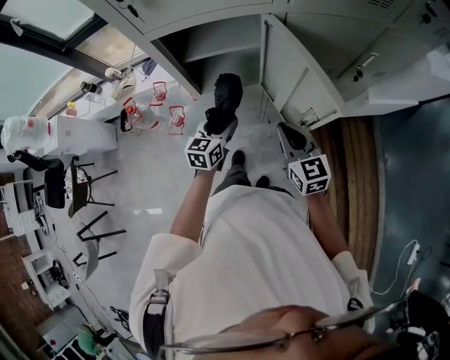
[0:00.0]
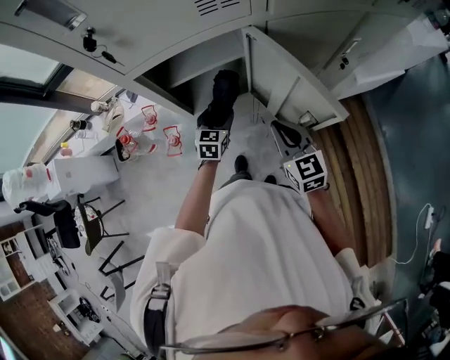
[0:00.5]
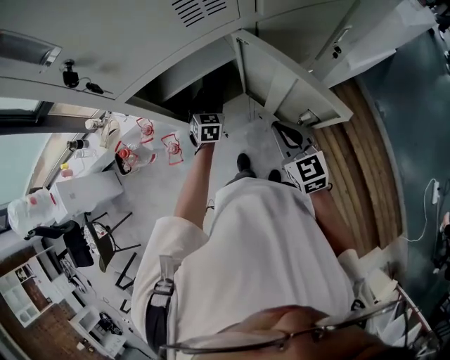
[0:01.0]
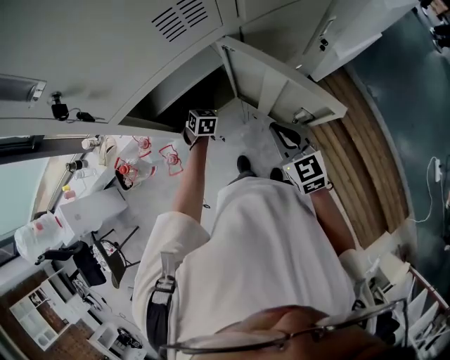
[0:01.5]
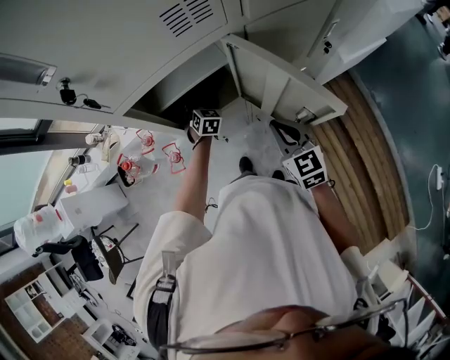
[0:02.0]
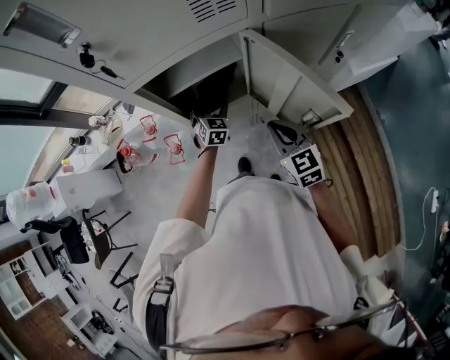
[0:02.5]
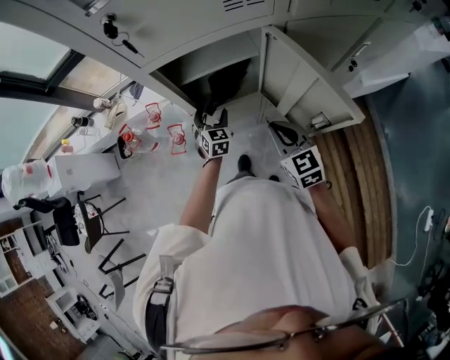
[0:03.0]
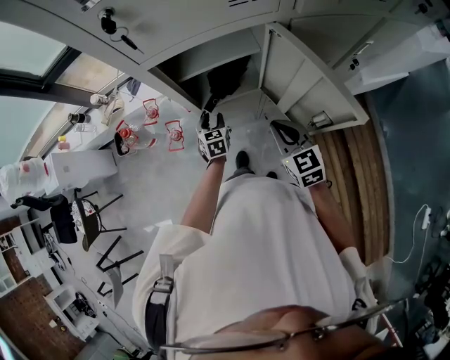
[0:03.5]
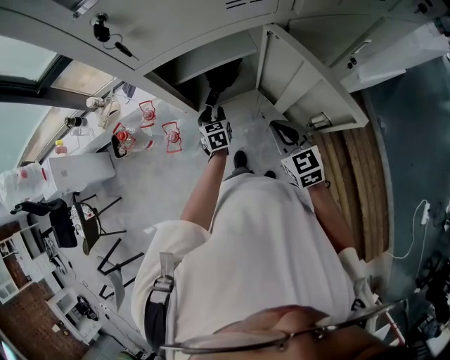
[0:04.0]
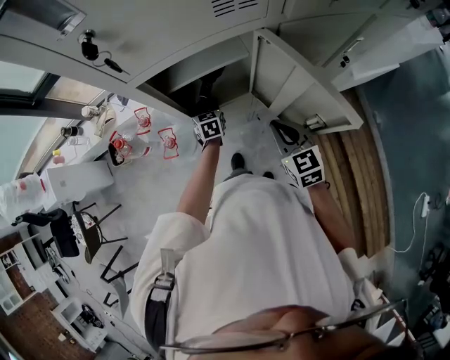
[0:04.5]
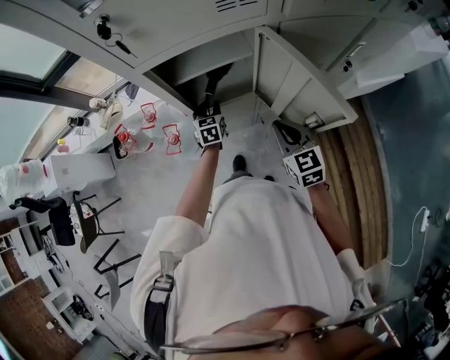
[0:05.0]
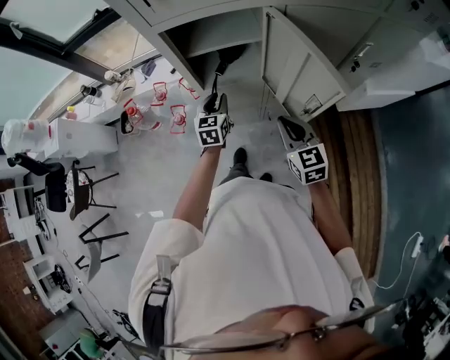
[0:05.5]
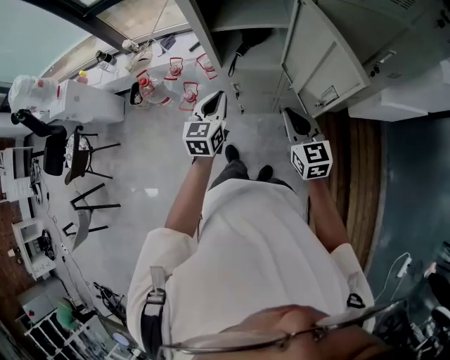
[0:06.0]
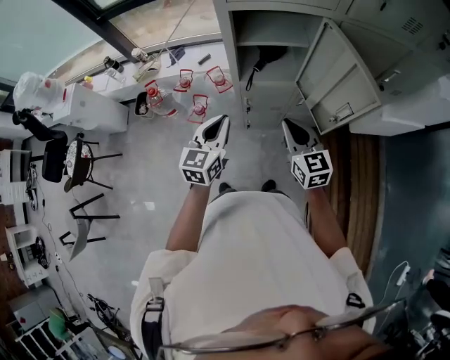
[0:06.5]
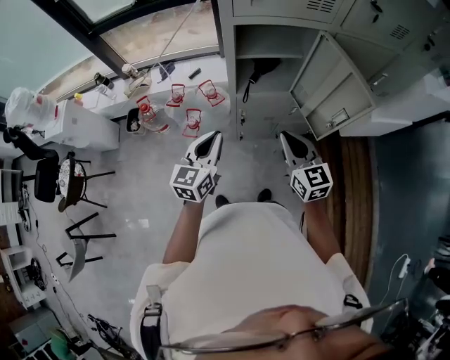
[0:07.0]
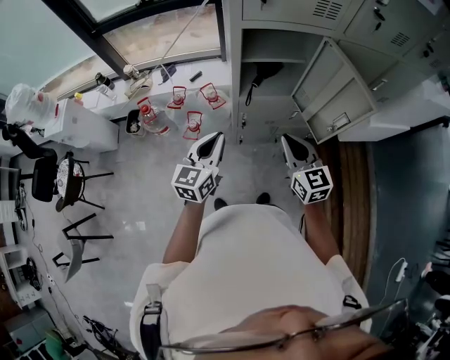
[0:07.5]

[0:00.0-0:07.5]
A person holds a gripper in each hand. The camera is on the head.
0:00.0 to 0:02.0: The left gripper travels forward and downward by some 25 cm, and changes its angle by approximately 40 degrees.
0:02.0 to 0:04.0: The left gripper shifts approximately 10 cm backward and to the left, swivels some 30 degrees, and closes.
0:04.0 to 0:05.5: The left gripper is displaced upward and backward by roughly 10 cm; the right gripper shifts roughly 5 cm backward.
0:05.5 to 0:07.5: The left gripper is displaced backward, to the left and upward by roughly 25 cm. The right gripper heads to the left and upward, covering roughly 15 cm.

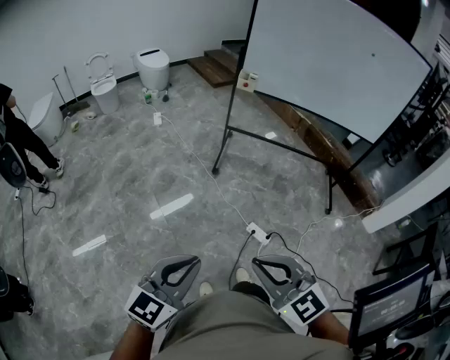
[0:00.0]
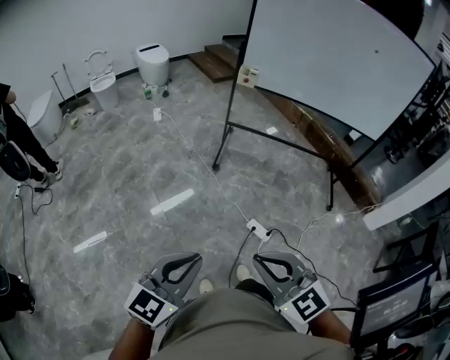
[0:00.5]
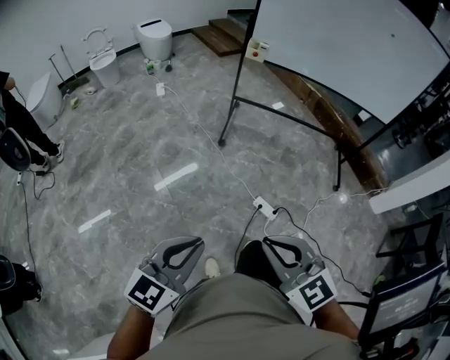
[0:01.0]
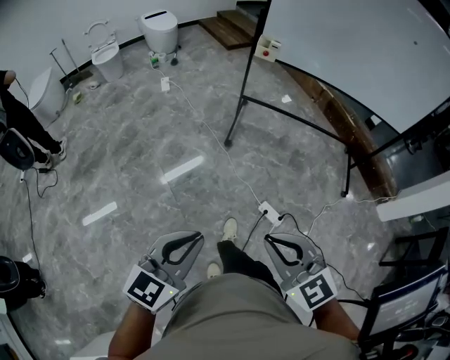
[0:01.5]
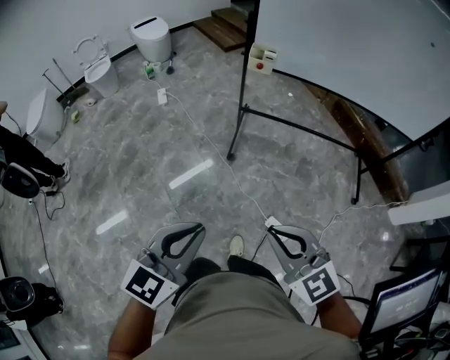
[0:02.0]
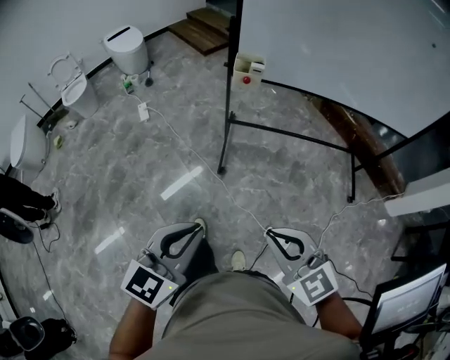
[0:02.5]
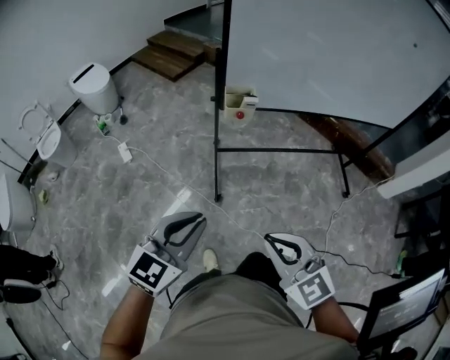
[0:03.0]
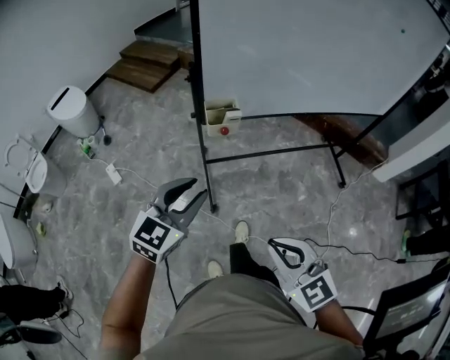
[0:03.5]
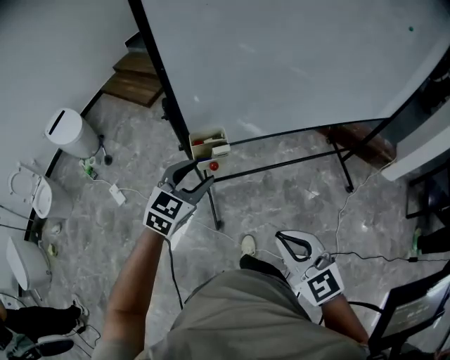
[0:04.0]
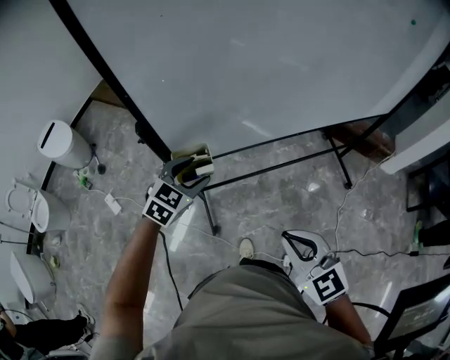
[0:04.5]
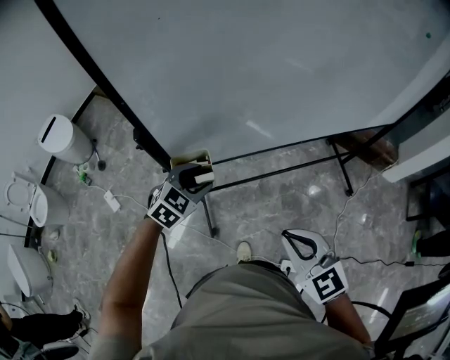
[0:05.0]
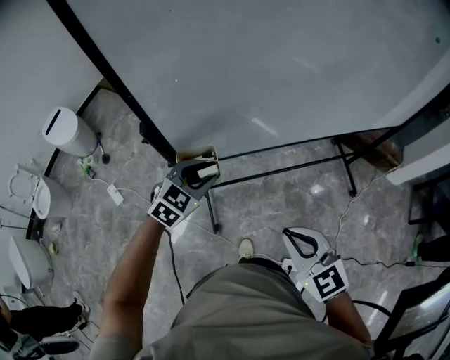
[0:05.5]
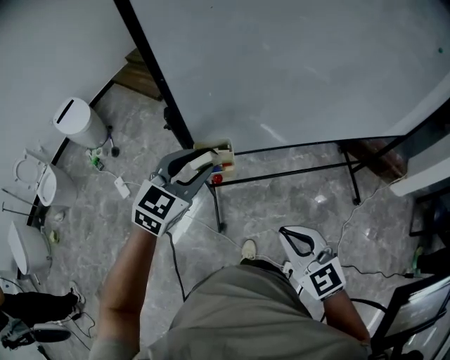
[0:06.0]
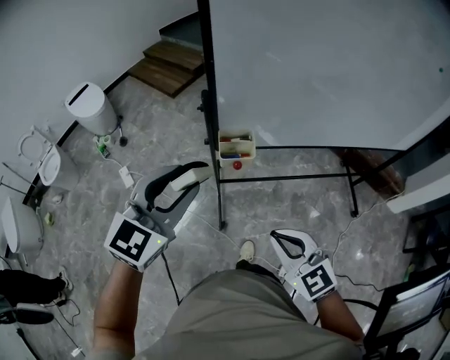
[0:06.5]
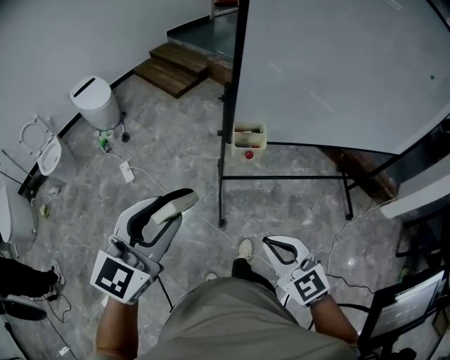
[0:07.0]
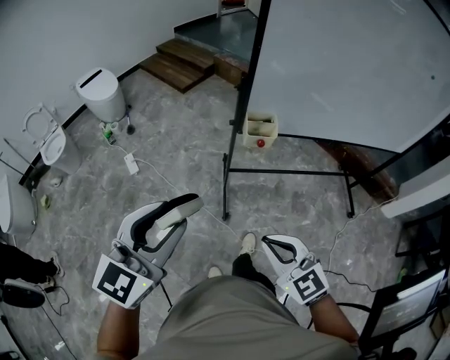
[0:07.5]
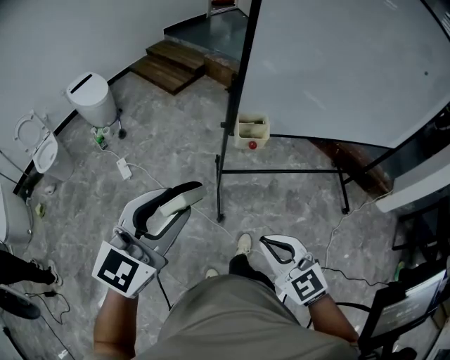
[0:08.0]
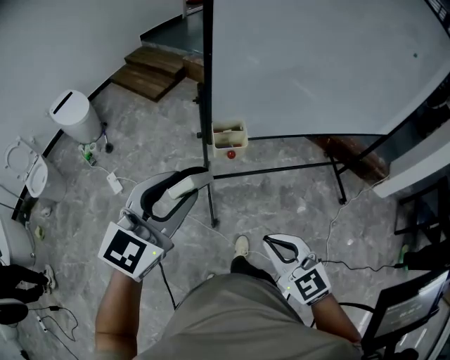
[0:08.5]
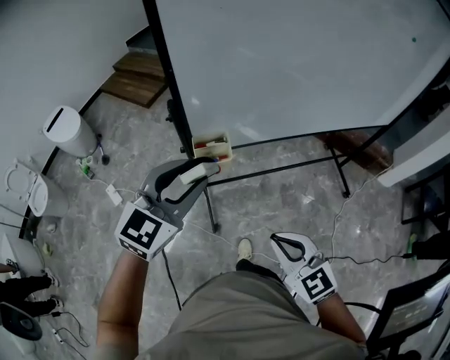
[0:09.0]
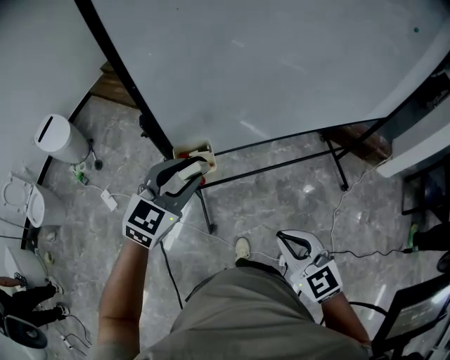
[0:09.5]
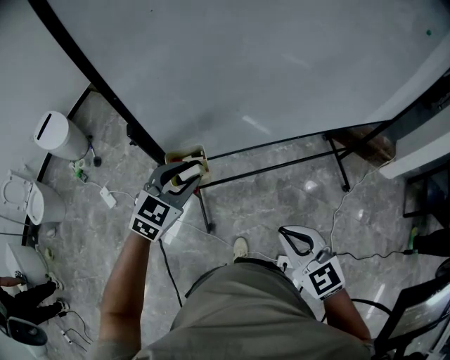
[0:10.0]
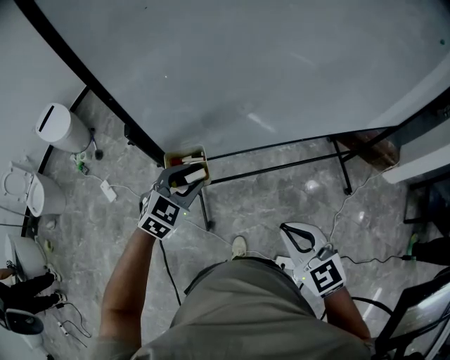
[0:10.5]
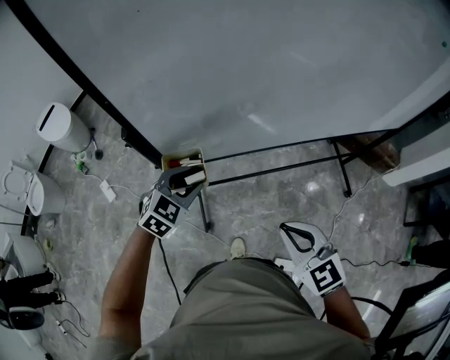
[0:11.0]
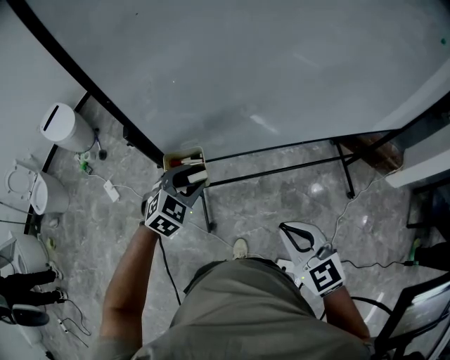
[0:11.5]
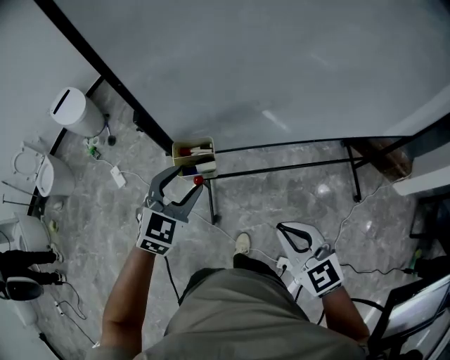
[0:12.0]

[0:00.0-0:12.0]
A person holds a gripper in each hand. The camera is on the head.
0:00.0 to 0:02.0: The two grippers go about 35 cm forward.
0:02.0 to 0:04.0: The pair of grippers is taken approximately 50 cm. The left gripper rotates some 30 degrees, and opens up, while the right gripper changes its angle by approximately 30 degrees.
0:04.0 to 0:06.0: The right gripper moves forward, some 10 cm, while the left gripper moves upward and forward, approximately 5 cm.
0:06.0 to 0:08.0: The left gripper shifts some 35 cm backward and to the left; the right gripper moves to the left and backward, about 25 cm.
0:08.0 to 0:10.0: The left gripper heads forward, to the right and downward, covering roughly 40 cm, and changes its angle by roughly 30 degrees, while the right gripper moves to the right and forward, roughly 30 cm.

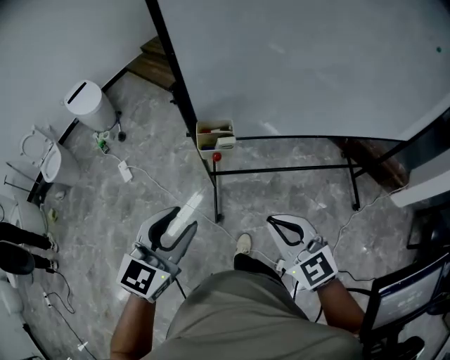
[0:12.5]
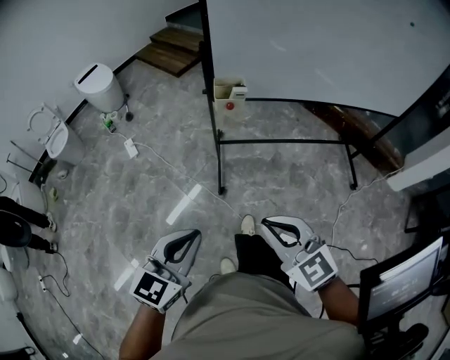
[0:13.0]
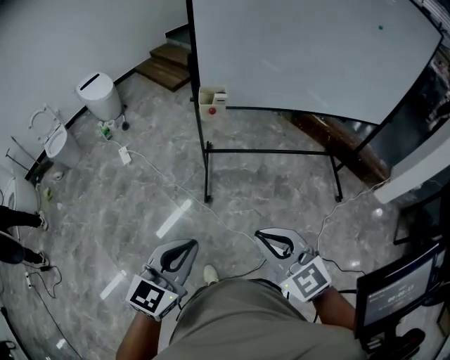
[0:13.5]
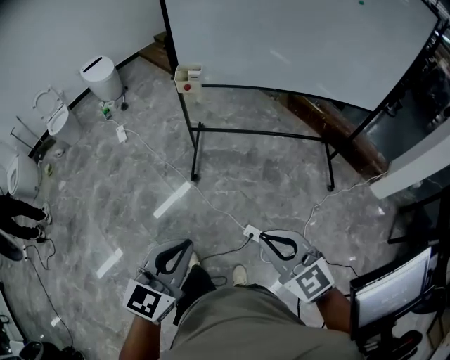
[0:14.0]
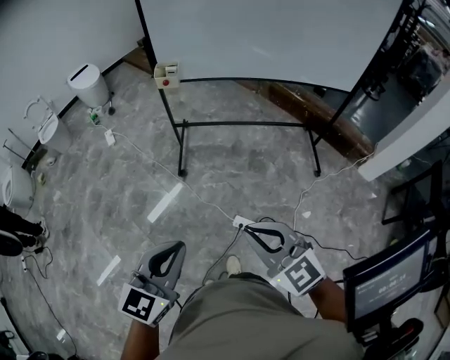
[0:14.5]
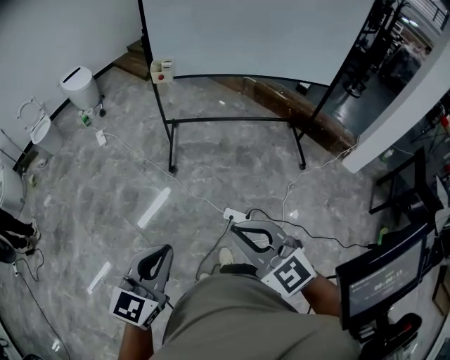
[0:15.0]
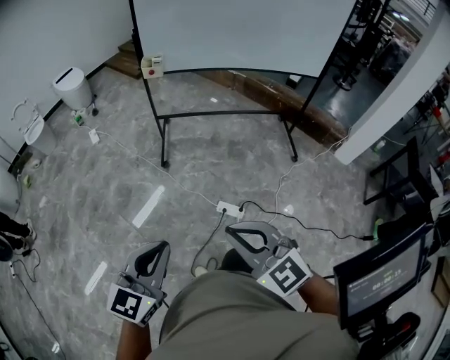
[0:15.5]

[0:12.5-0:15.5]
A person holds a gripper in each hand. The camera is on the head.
0:12.5 to 0:14.0: The two grippers travel together, backward, approximately 40 cm. The left gripper closes.
0:14.0 to 0:15.5: The grippers both shift backward by roughly 25 cm.

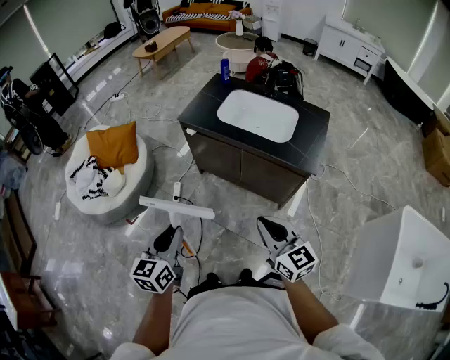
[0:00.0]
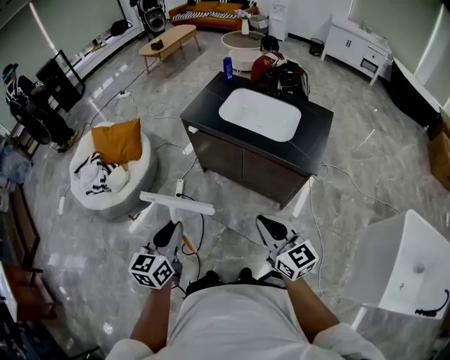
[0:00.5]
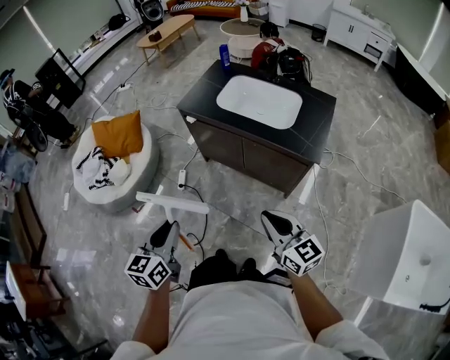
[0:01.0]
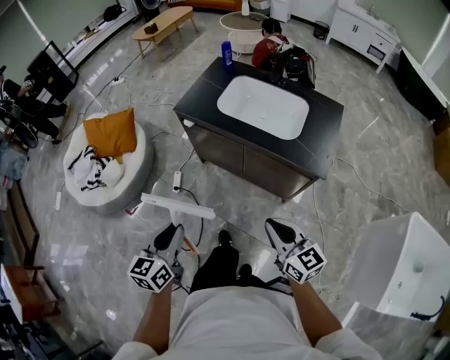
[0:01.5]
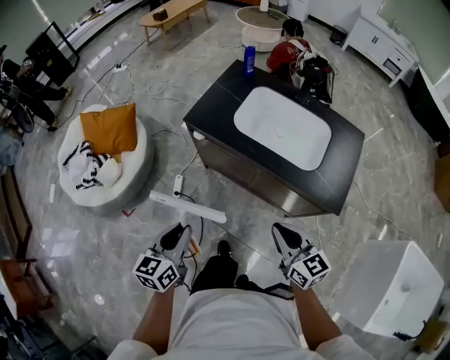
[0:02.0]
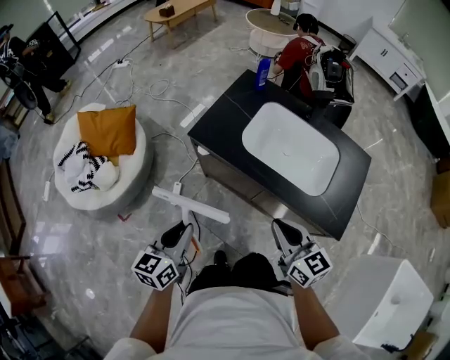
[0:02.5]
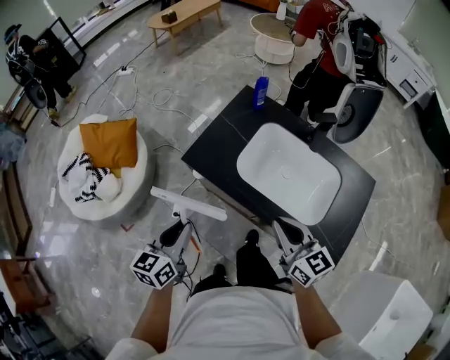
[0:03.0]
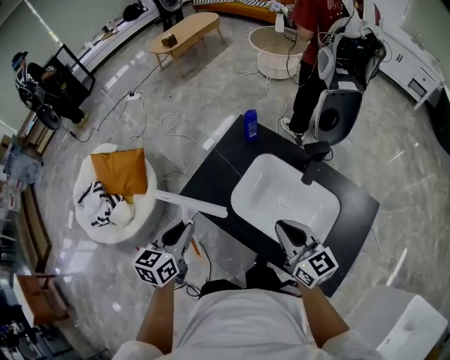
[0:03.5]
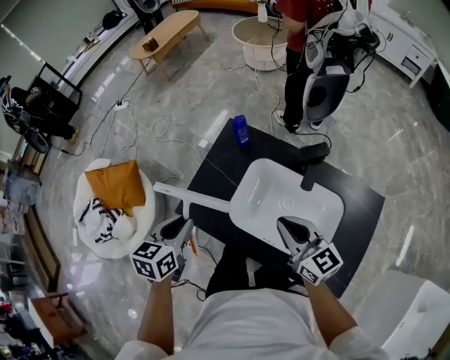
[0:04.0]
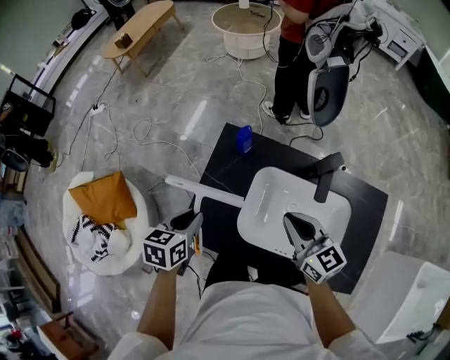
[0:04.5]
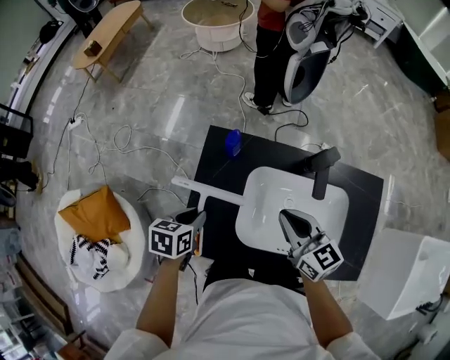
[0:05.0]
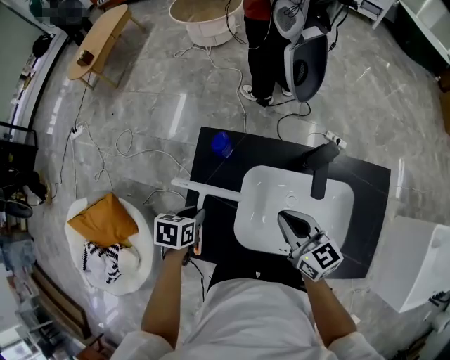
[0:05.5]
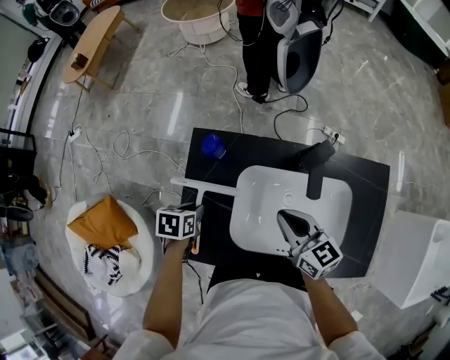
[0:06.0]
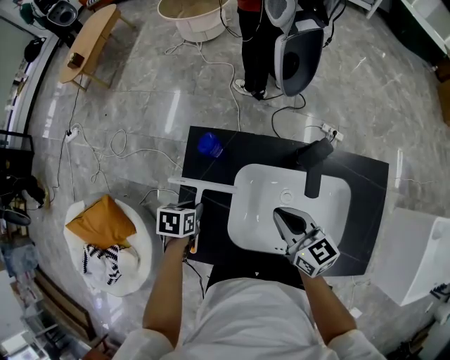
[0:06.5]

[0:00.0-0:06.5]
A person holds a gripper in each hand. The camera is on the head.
0:00.0 to 0:02.0: The grippers both shift forward by about 20 cm.
0:02.0 to 0:04.5: The pair of grippers is taken forward, some 50 cm. The left gripper changes its angle by some 30 degrees.
0:04.5 to 0:06.5: The left gripper travels downward and forward by roughly 20 cm, and turns by approximately 30 degrees, while the right gripper travels downward by approximately 5 cm.
